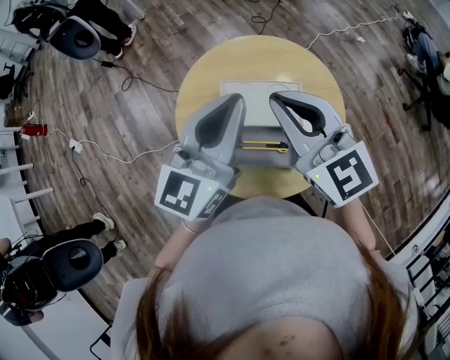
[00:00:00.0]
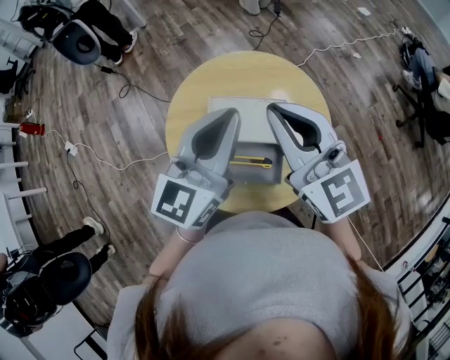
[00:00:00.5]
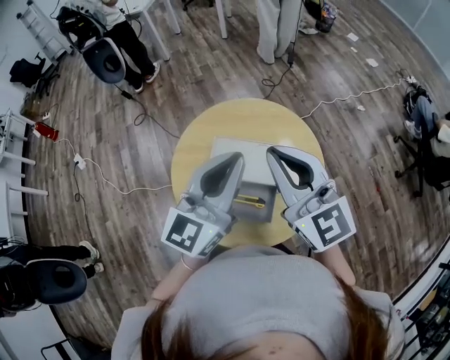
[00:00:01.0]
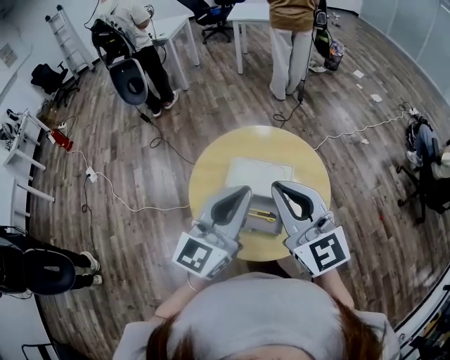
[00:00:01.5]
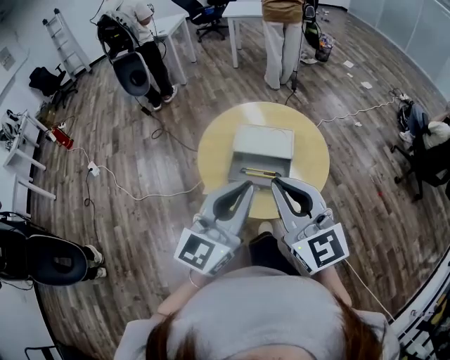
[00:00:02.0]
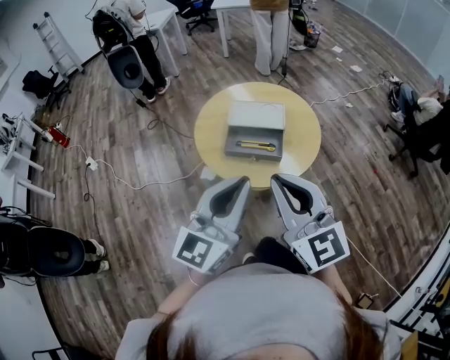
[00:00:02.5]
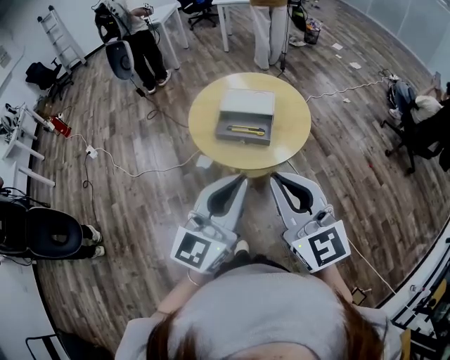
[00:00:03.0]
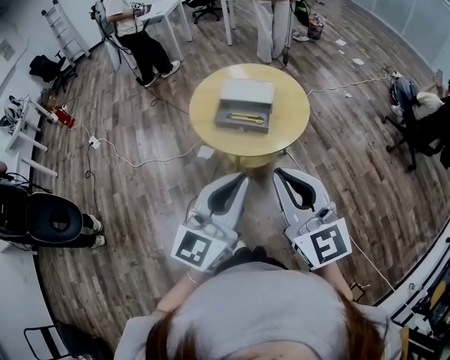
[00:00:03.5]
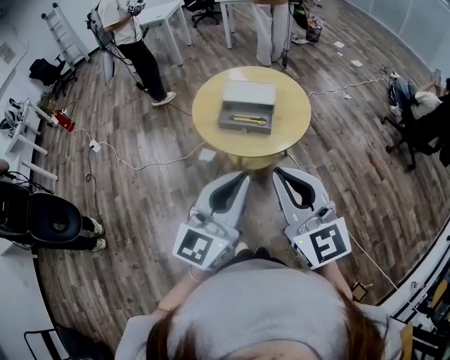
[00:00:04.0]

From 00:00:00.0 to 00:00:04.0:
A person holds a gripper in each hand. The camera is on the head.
From 00:00:00.0 to 00:00:02.0: Both grippers travel together backward, some 25 cm.
From 00:00:02.0 to 00:00:04.0: The two grippers go approximately 20 cm backward.

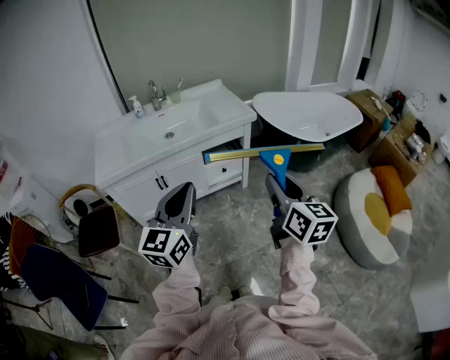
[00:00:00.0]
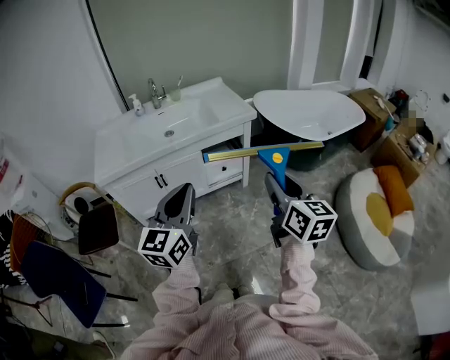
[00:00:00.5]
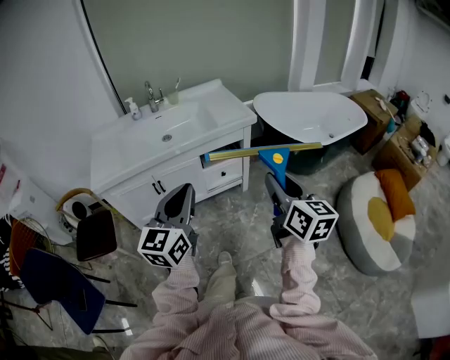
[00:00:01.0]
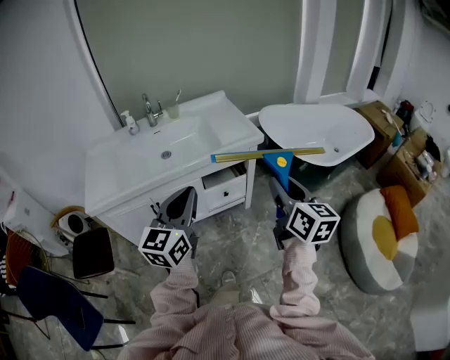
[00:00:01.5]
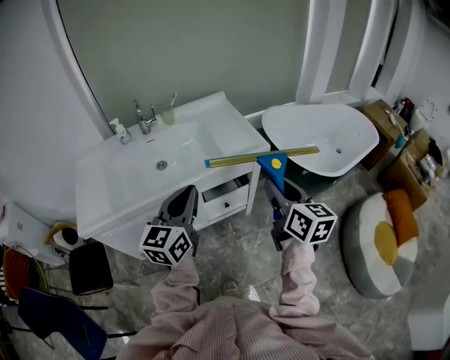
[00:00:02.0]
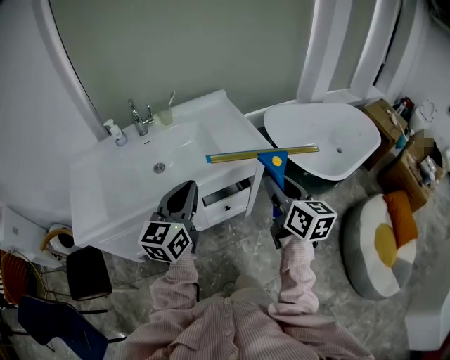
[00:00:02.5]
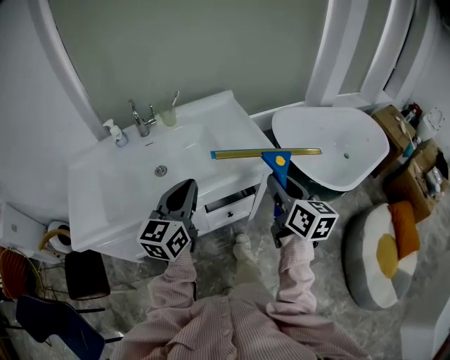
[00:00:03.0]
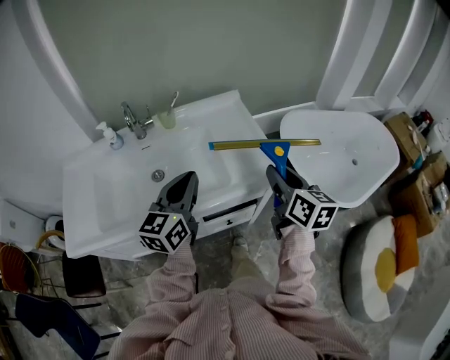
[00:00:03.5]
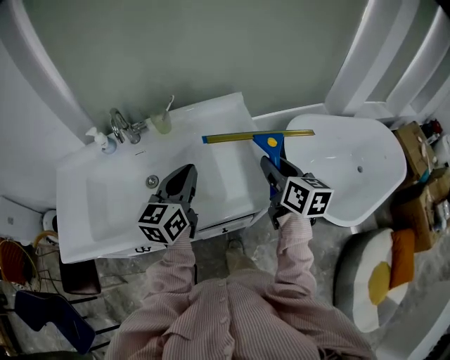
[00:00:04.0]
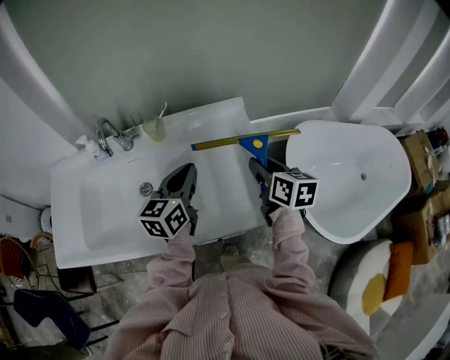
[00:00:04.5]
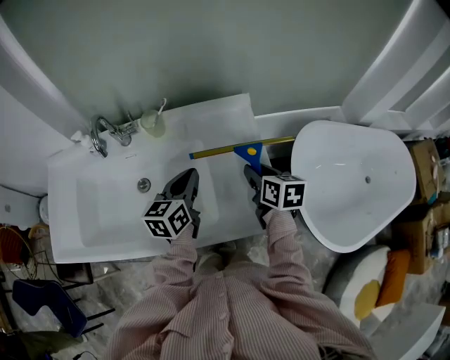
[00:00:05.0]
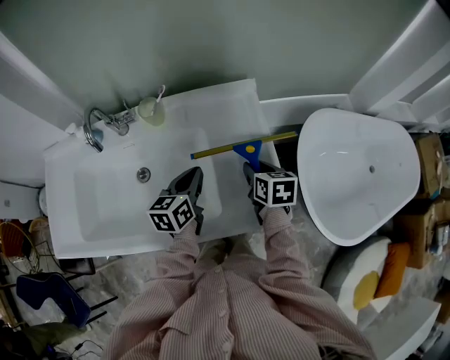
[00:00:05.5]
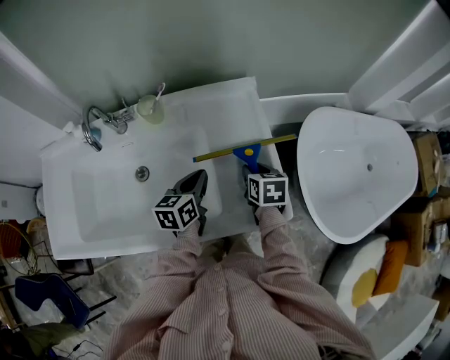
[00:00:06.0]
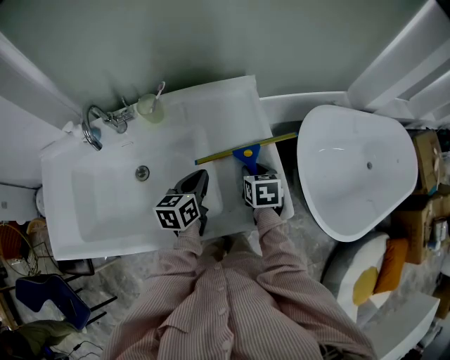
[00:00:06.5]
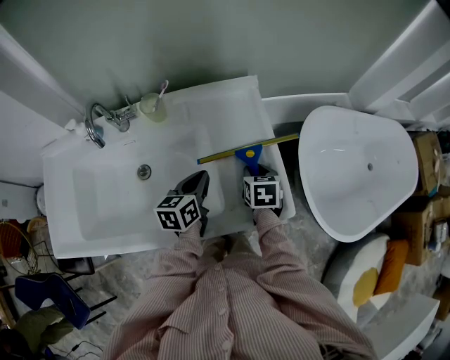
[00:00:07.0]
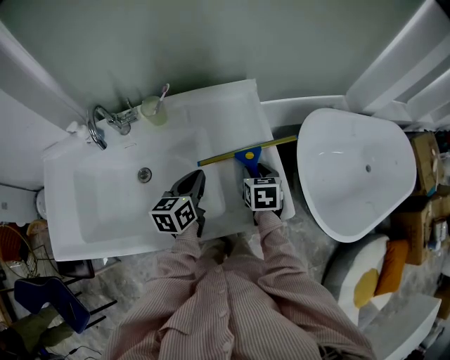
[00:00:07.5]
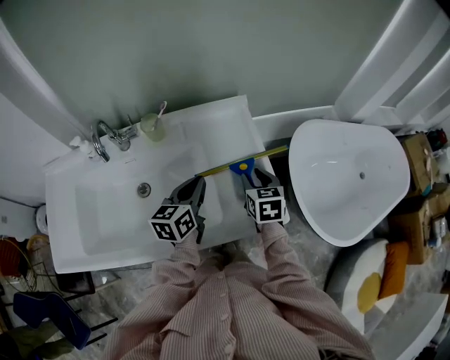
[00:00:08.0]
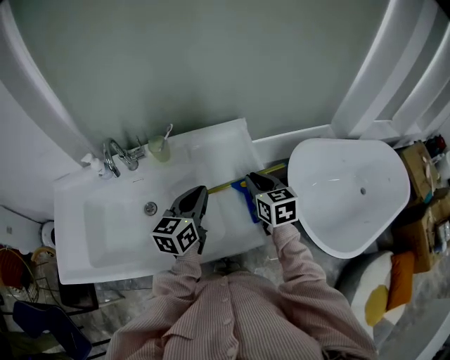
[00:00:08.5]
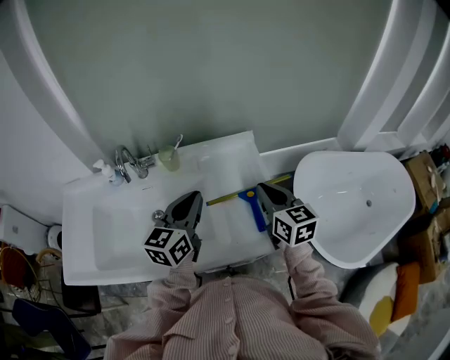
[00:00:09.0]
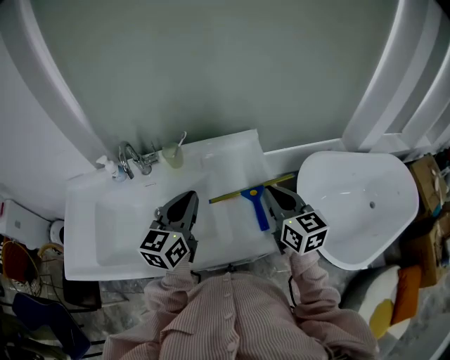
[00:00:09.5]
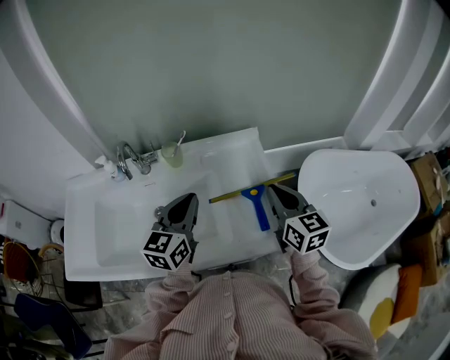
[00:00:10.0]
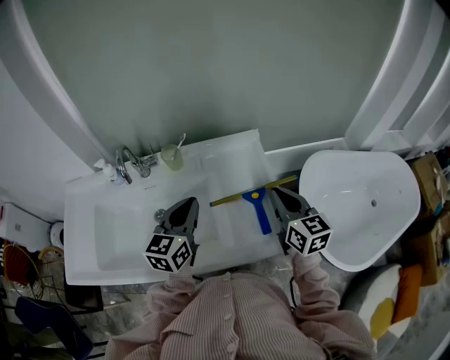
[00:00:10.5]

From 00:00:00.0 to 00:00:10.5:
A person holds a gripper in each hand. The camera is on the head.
From 00:00:00.0 to 00:00:02.0: Both grippers move forward, roughly 30 cm.
From 00:00:02.0 to 00:00:04.0: Both grippers travel together forward, about 35 cm.
From 00:00:04.0 to 00:00:06.5: Both grippers travel together downward and forward, roughly 20 cm. The left gripper changes its angle by roughly 30 degrees. Meanwhile the right gripper angles its fingers downward, by approximately 30 degrees.
From 00:00:06.5 to 00:00:08.5: The grippers both shift upward by roughly 15 cm. The right gripper turns by approximately 30 degrees.
From 00:00:08.5 to 00:00:10.5: The left gripper travels to the left by roughly 5 cm; the right gripper goes about 5 cm upward.

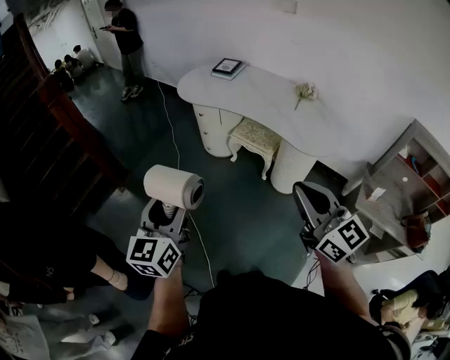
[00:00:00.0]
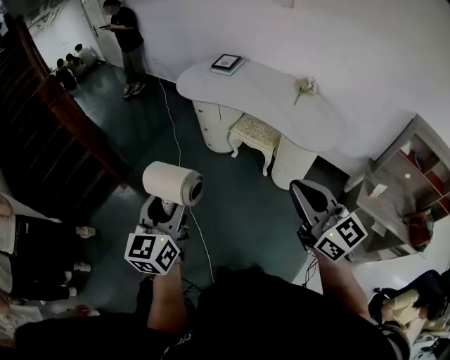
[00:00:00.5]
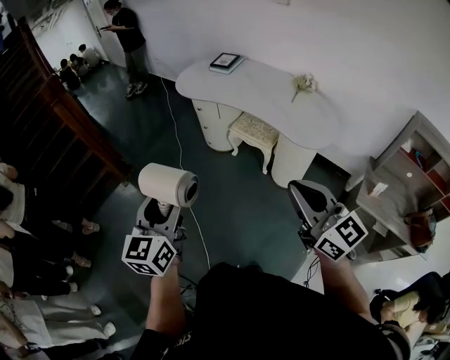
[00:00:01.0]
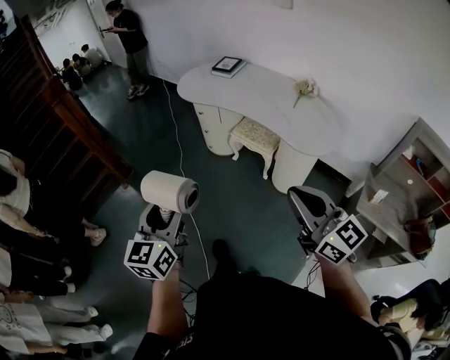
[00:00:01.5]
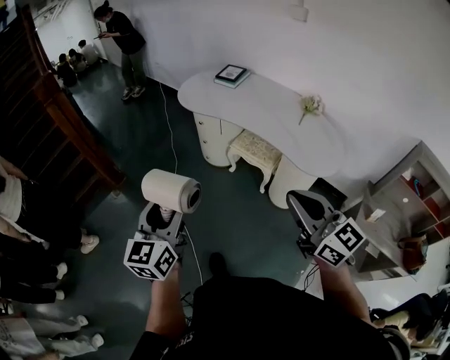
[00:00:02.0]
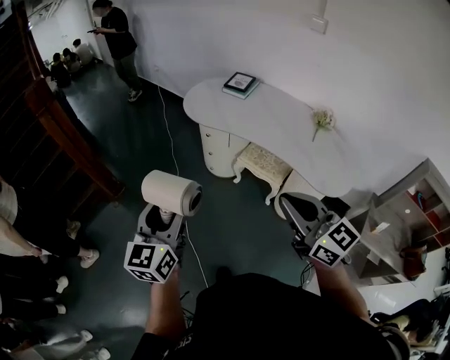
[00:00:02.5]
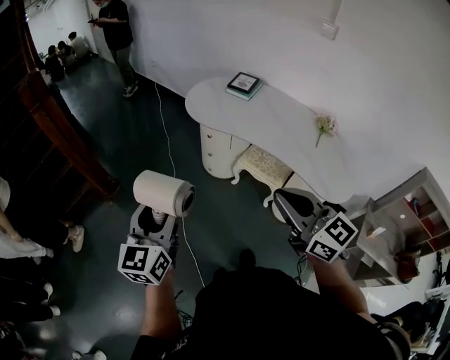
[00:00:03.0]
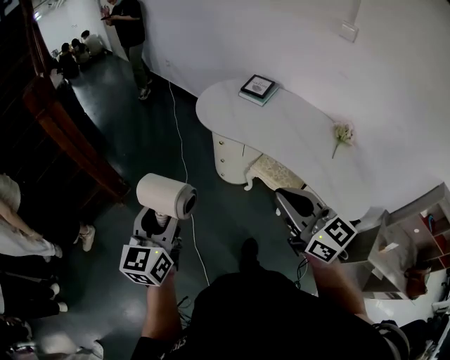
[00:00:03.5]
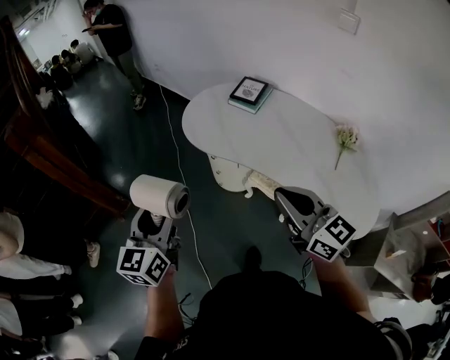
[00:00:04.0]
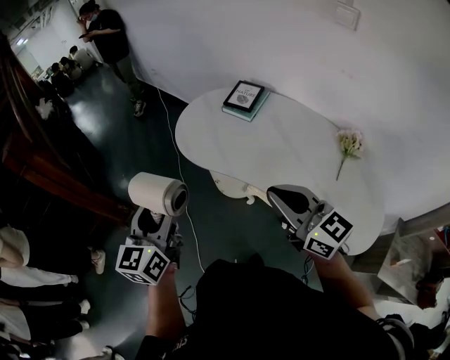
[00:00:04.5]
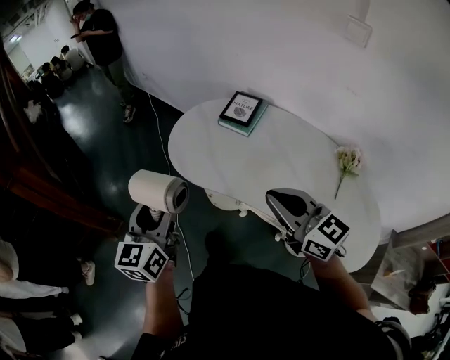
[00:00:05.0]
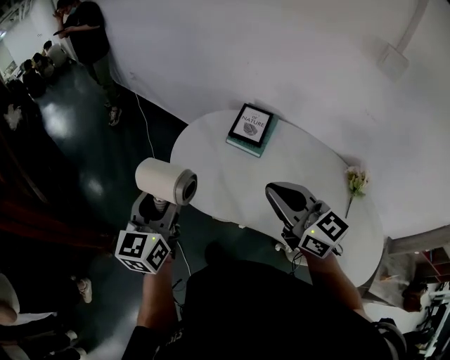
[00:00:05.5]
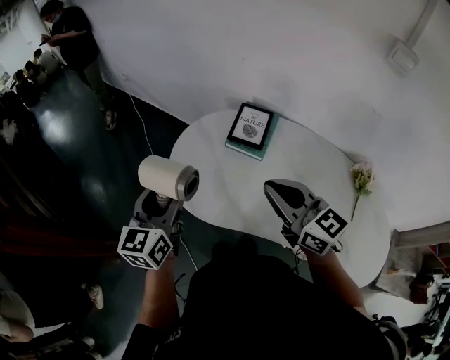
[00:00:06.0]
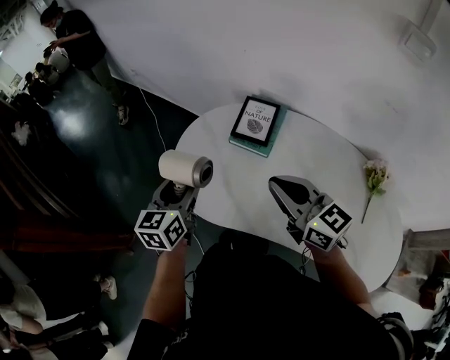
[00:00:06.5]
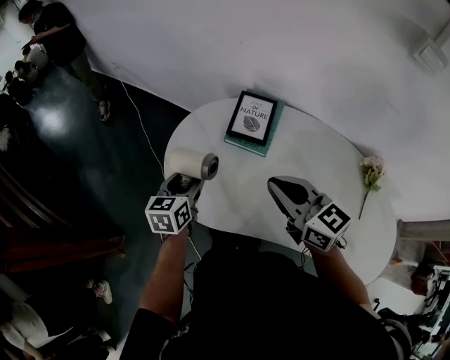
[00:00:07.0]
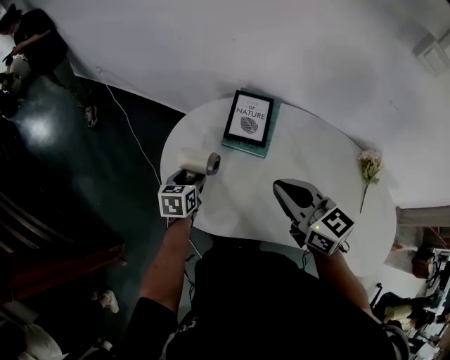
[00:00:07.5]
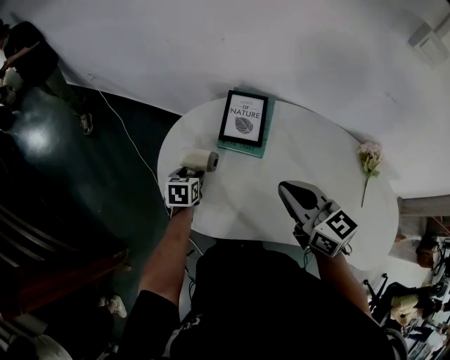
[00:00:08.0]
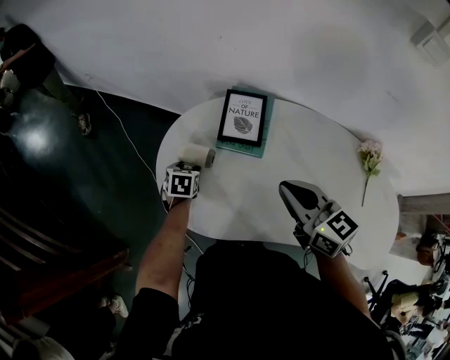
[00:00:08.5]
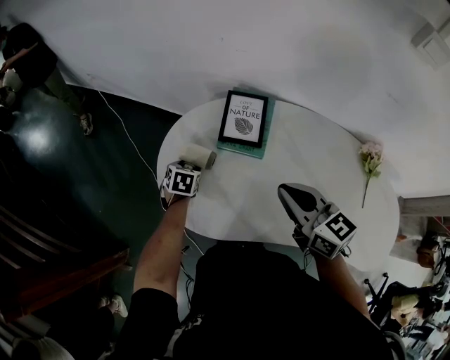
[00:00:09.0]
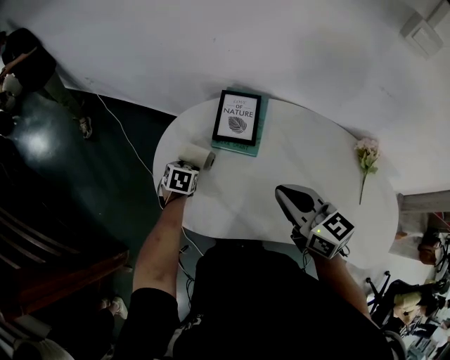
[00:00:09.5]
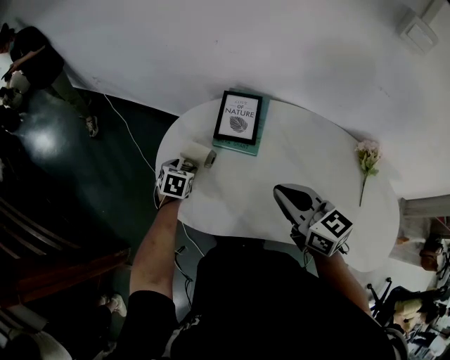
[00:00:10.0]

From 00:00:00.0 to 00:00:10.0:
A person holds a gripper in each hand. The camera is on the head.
From 00:00:00.0 to 00:00:02.0: The two grippers go about 10 cm forward.
From 00:00:02.0 to 00:00:04.0: The grippers both shift forward by some 40 cm.
From 00:00:04.0 to 00:00:06.0: Both grippers move forward, approximately 40 cm.
From 00:00:06.0 to 00:00:08.0: The left gripper moves downward and forward, approximately 35 cm, and tilts its fingers about 40 degrees downward; the right gripper travels downward and forward by some 10 cm.
From 00:00:08.0 to 00:00:10.0: The grippers make only small movements.

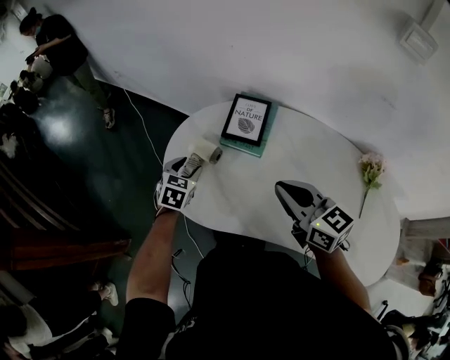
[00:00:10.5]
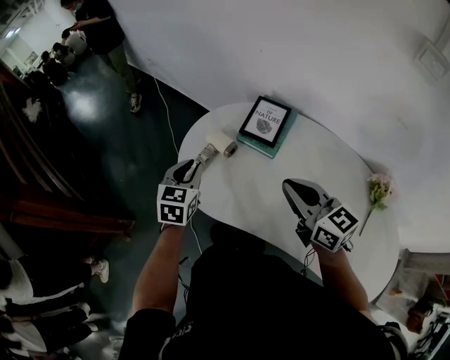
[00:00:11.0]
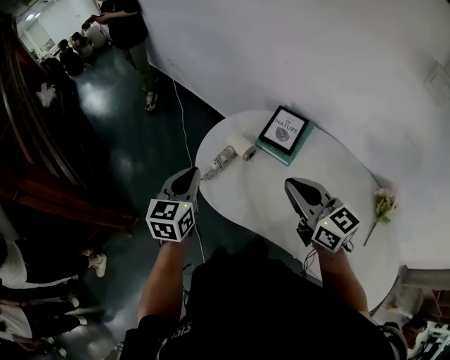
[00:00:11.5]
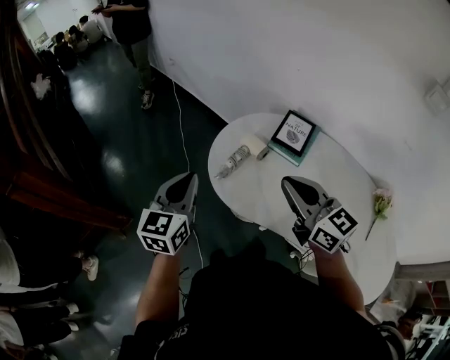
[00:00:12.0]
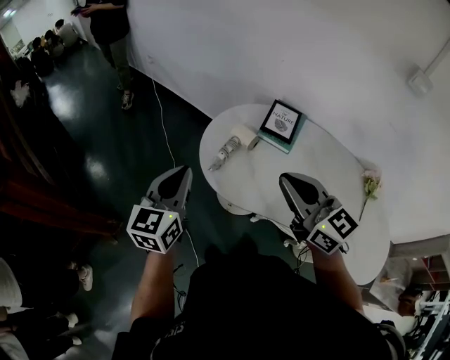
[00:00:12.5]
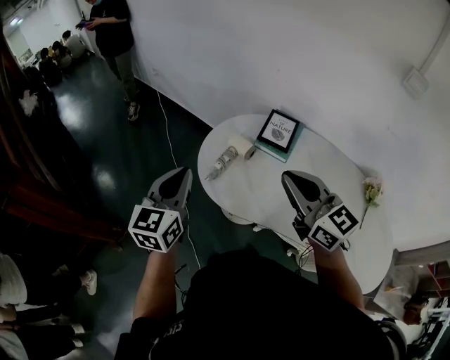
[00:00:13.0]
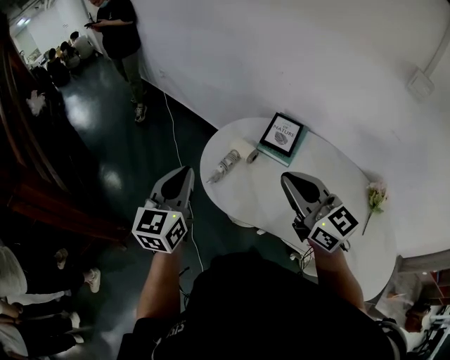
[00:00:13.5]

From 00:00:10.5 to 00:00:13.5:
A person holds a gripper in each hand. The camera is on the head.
From 00:00:10.5 to 00:00:12.0: The left gripper moves upward, to the left and backward, approximately 30 cm, tilts its fingers about 30 degrees upward, and closes, while the right gripper shifts some 20 cm to the left and upward.
From 00:00:12.0 to 00:00:13.5: The left gripper shifts by approximately 5 cm.
